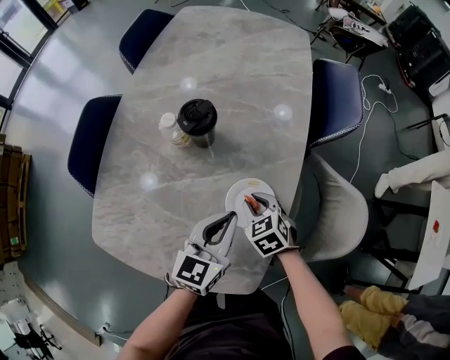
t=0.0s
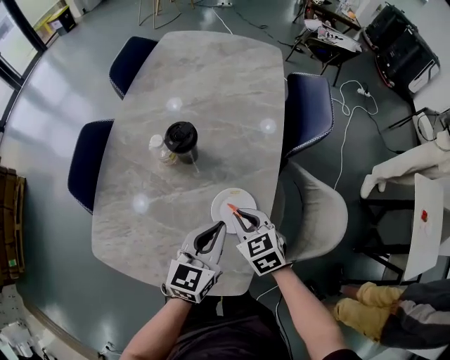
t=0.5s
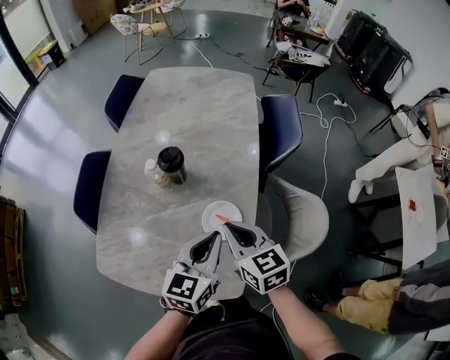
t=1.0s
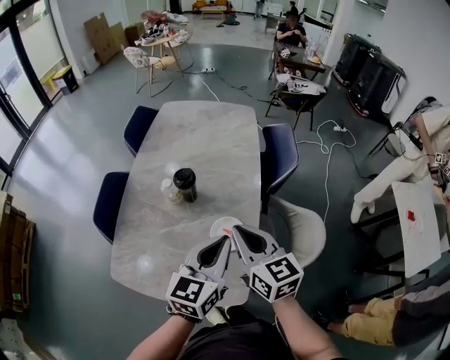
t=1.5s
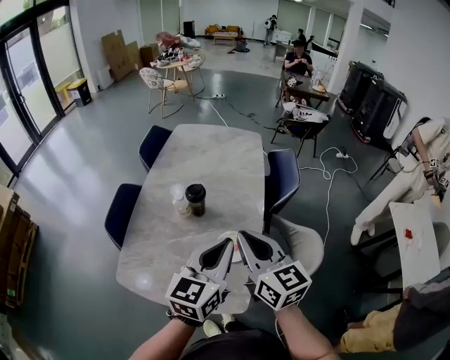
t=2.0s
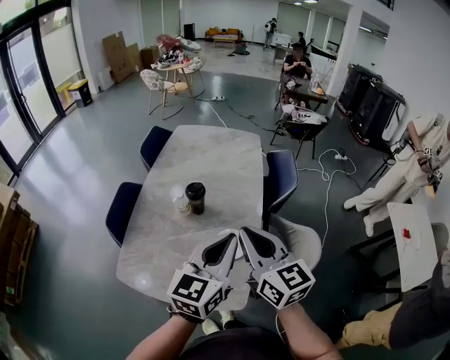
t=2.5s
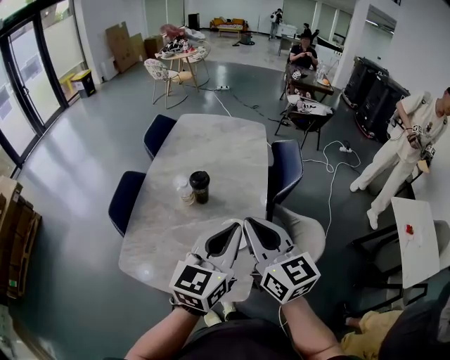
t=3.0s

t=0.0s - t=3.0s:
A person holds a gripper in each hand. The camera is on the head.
t=0.0s - t=1.5s: The right gripper moves upward, some 35 cm, and tilts its fingers roughly 40 degrees upward; the left gripper heads upward, covering roughly 25 cm.
t=1.5s - t=3.0s: The left gripper goes some 10 cm upward, while the right gripper travels upward and backward by about 10 cm.

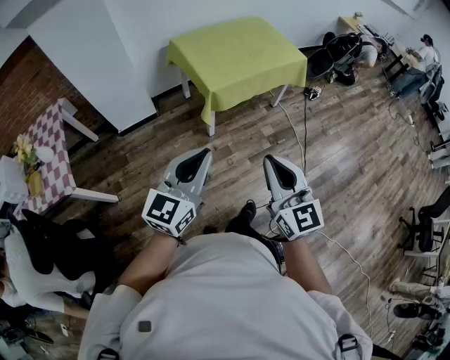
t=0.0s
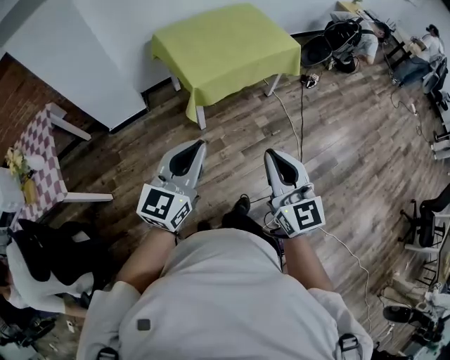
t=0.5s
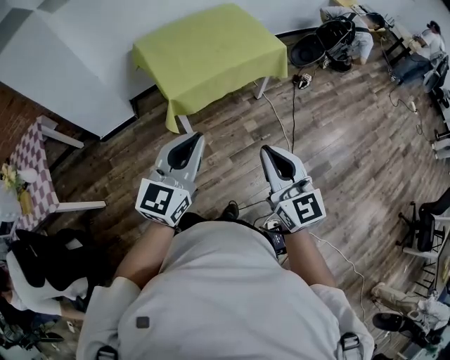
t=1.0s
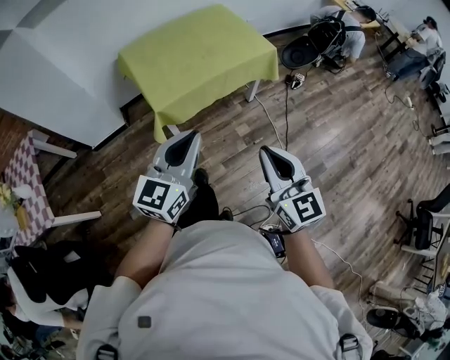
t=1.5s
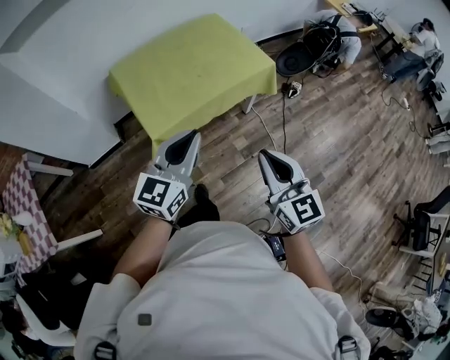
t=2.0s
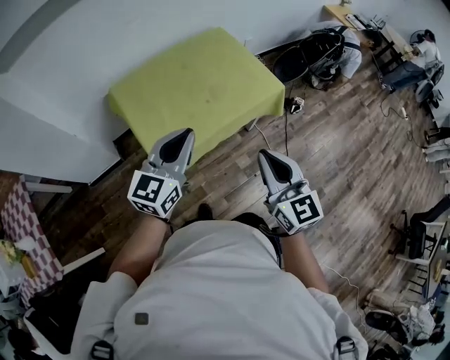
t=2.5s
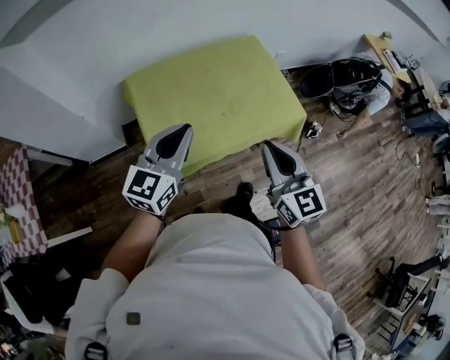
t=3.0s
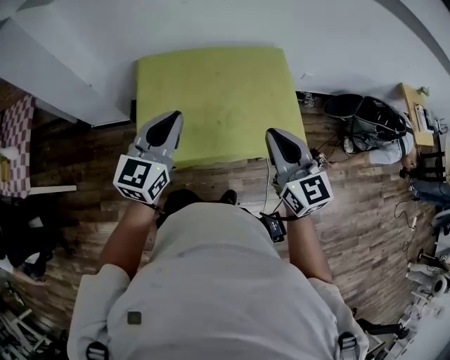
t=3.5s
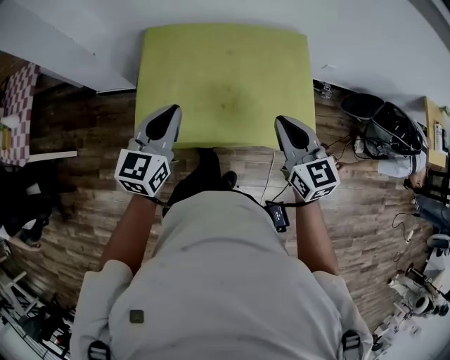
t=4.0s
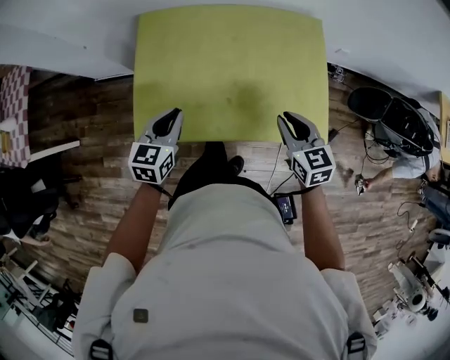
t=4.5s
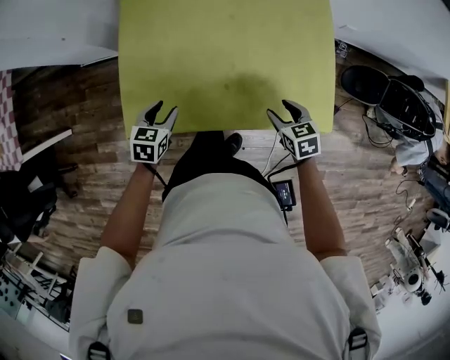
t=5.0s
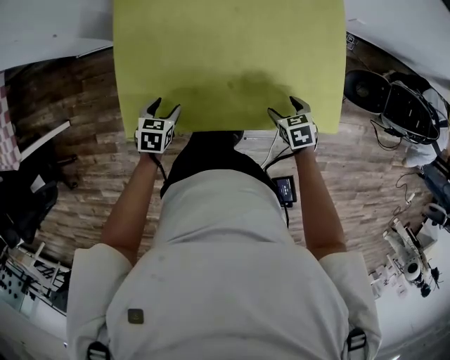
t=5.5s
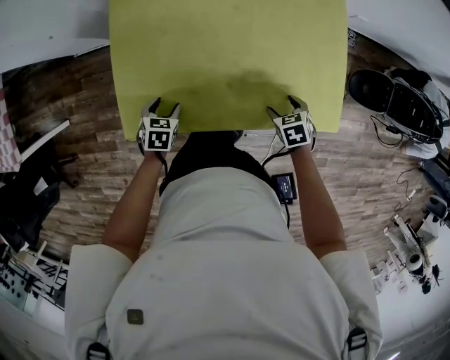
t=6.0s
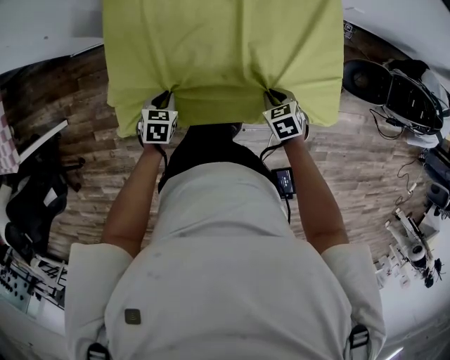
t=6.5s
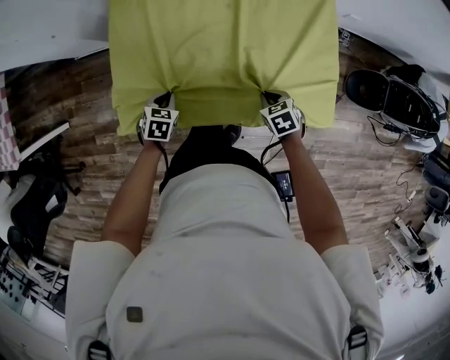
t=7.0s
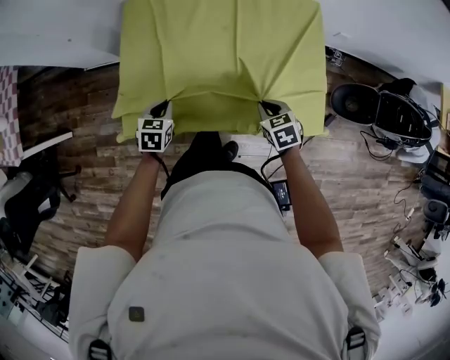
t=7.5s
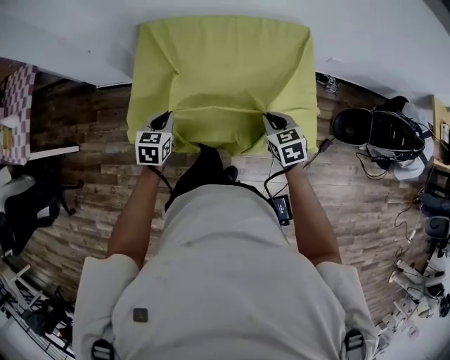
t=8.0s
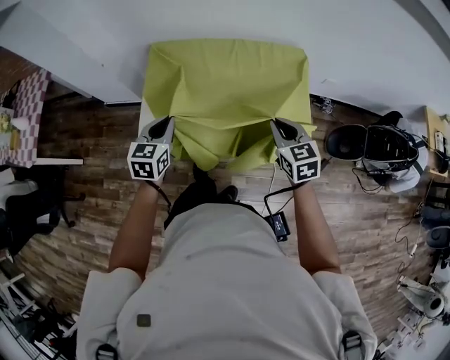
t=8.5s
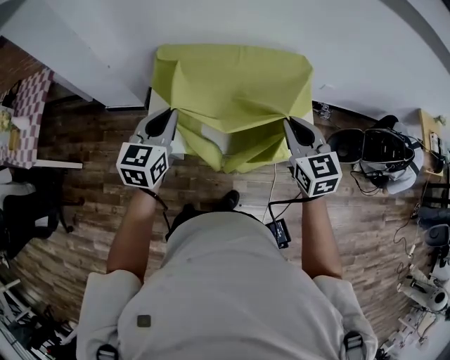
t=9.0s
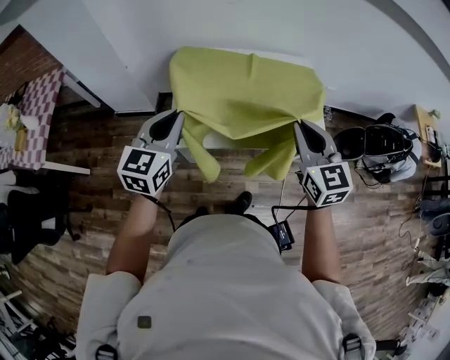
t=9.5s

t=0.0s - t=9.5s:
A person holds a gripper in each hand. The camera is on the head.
t=0.0s - t=2.0s: The grippers both shift forward and to the right by about 40 cm.
t=2.0s - t=4.0s: The left gripper changes place by approximately 30 cm, and swivels some 40 degrees. Meanwhile the right gripper shifts by roughly 50 cm, and swivels some 40 degrees.
t=4.0s - t=5.5s: The two grippers go roughly 35 cm downward. The right gripper angles its fingers downward, by about 50 degrees, and opens, while the left gripper angles its fingers downward, by approximately 50 degrees, and opens its fingers.
t=5.5s - t=7.5s: The two grippers go approximately 5 cm upward. The right gripper closes up. Meanwhile the left gripper closes its fingers.
t=7.5s - t=9.5s: Both grippers move upward, approximately 35 cm. The left gripper angles its fingers upward, by some 40 degrees; the right gripper tilts its fingers roughly 40 degrees upward.

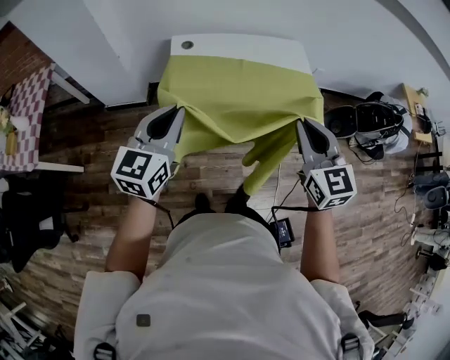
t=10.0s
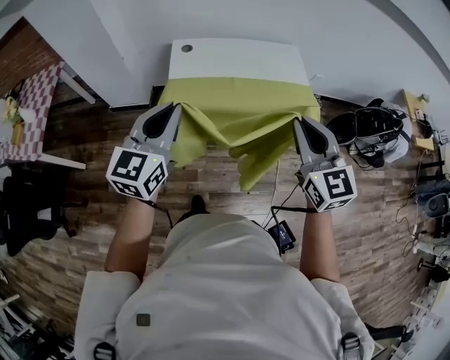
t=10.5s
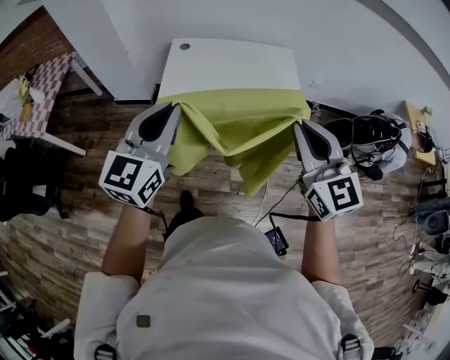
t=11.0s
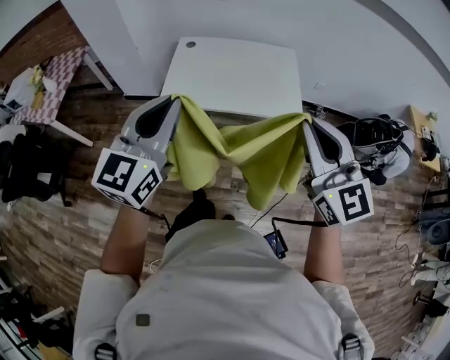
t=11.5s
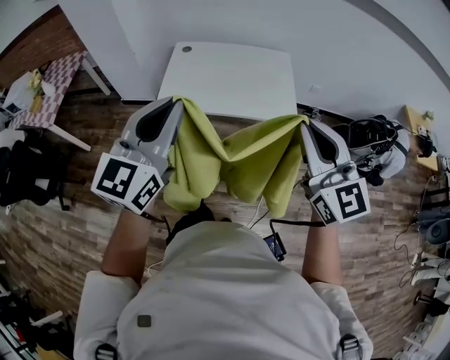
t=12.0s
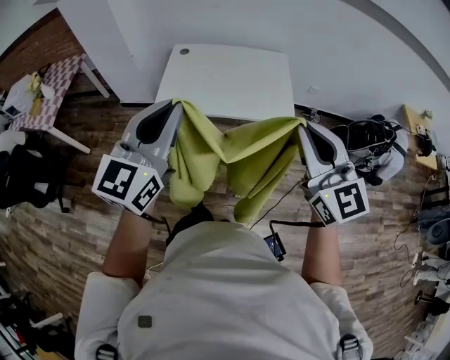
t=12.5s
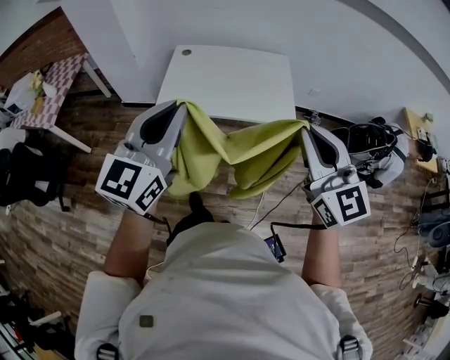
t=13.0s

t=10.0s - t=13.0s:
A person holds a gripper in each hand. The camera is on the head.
t=10.0s - t=11.5s: The grippers both shift backward, to the right and upward by about 30 cm. The right gripper rotates about 20 degrees.
t=11.5s - t=13.0s: The grippers make only small movements.

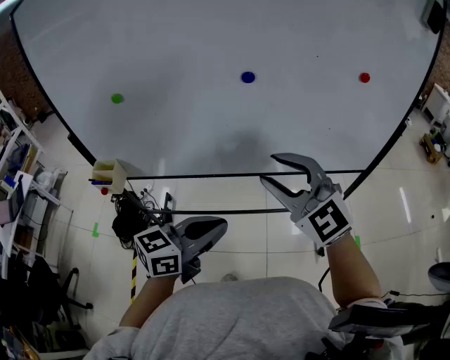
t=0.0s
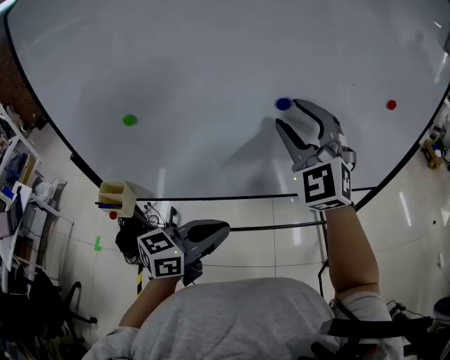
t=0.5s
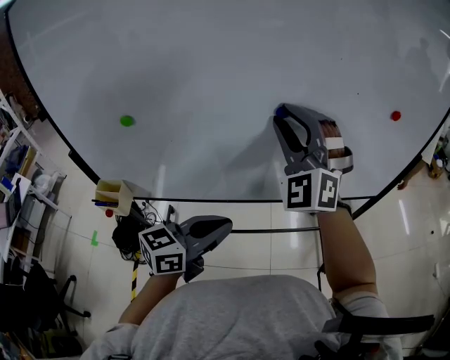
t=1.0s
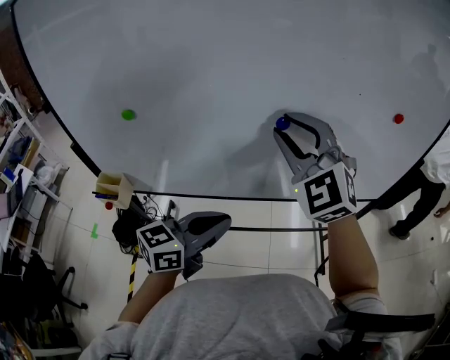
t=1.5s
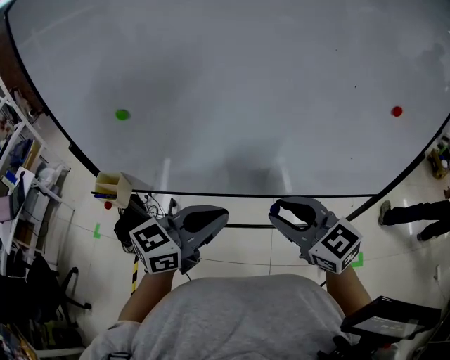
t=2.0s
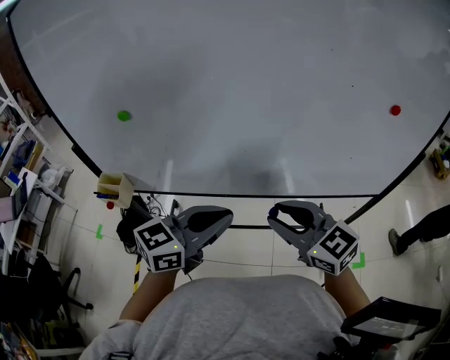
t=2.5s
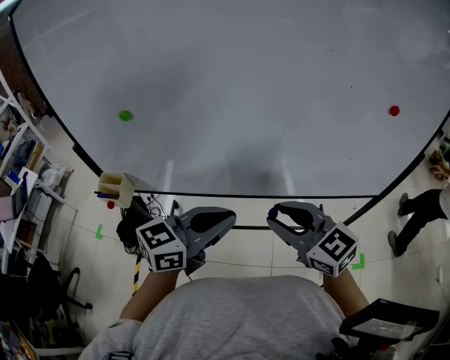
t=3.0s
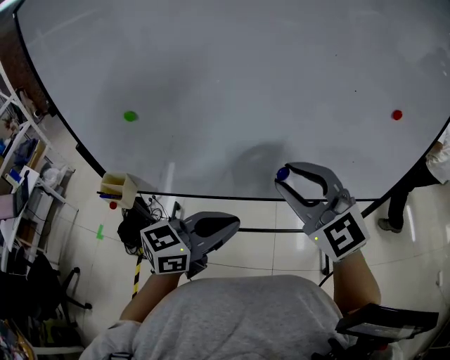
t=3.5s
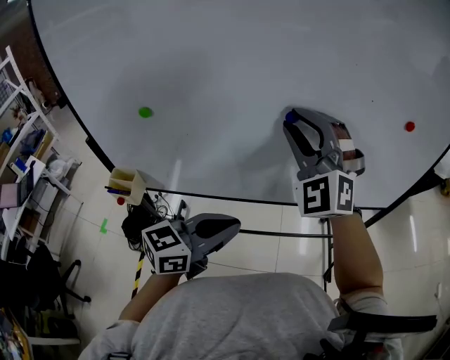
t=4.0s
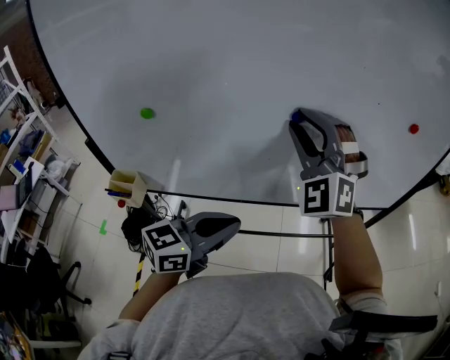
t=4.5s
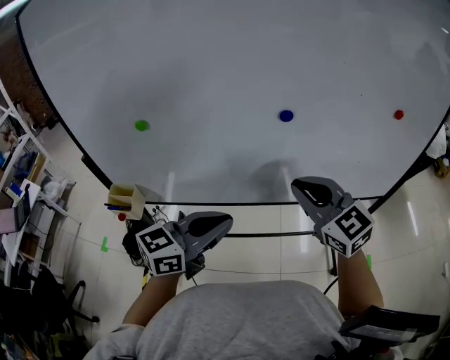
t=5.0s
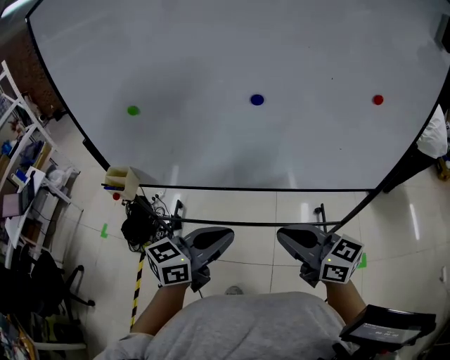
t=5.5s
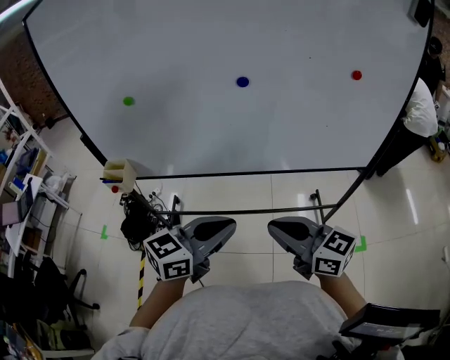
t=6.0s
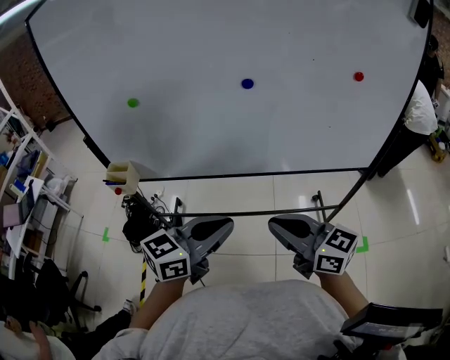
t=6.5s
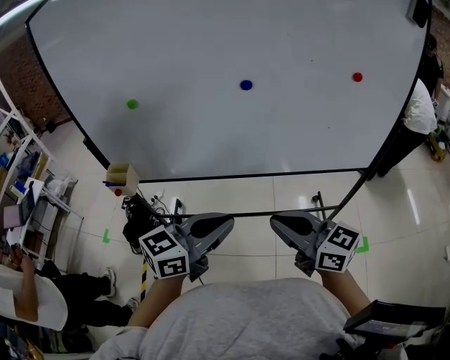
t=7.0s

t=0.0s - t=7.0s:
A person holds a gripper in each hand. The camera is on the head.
t=0.0s - t=2.0s: The left gripper is displaced forward by roughly 10 cm. Meanwhile the right gripper is displaced downward by some 5 cm, and rotates roughly 30 degrees.
t=2.0s - t=3.5s: The right gripper goes approximately 10 cm upward, and changes its angle by approximately 30 degrees.
t=3.5s - t=5.0s: The right gripper travels downward by roughly 5 cm, and closes, while the left gripper goes about 5 cm to the left.
t=5.0s - t=7.0s: The right gripper heads backward, covering some 20 cm, and rotates some 40 degrees; the left gripper shifts roughly 15 cm backward and to the right.

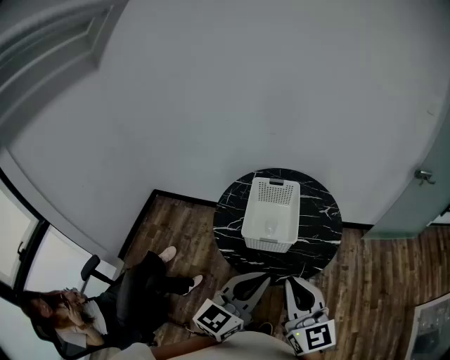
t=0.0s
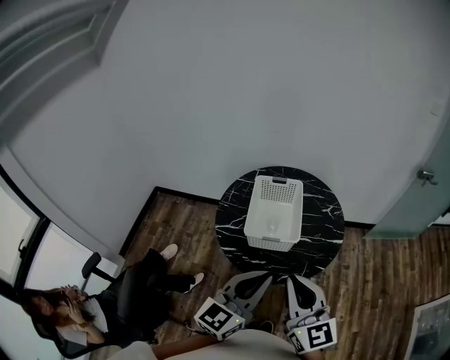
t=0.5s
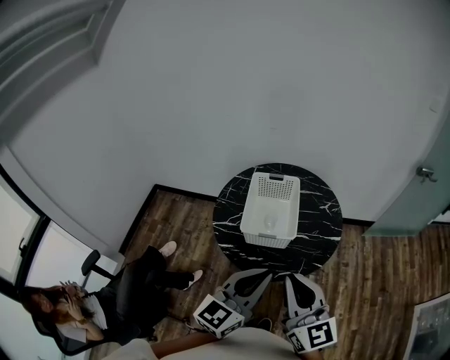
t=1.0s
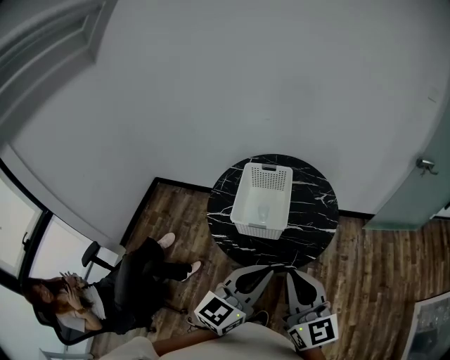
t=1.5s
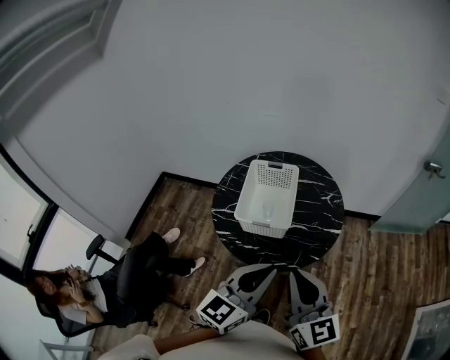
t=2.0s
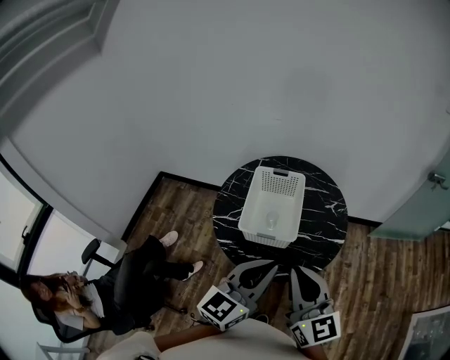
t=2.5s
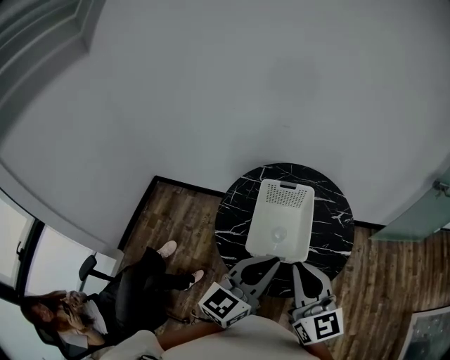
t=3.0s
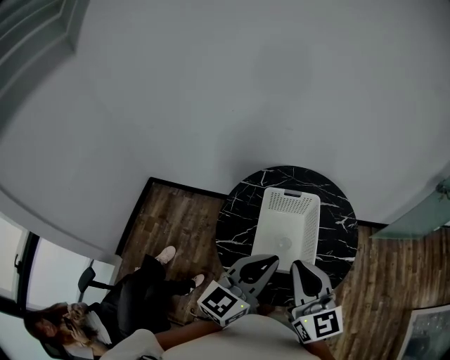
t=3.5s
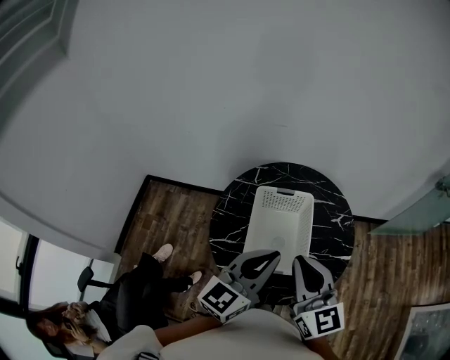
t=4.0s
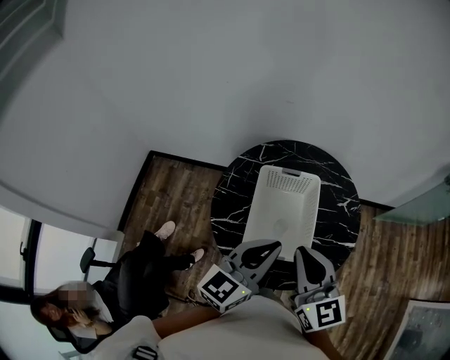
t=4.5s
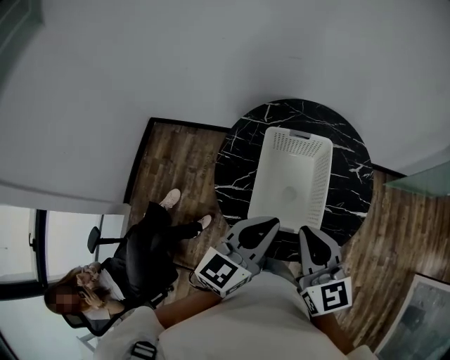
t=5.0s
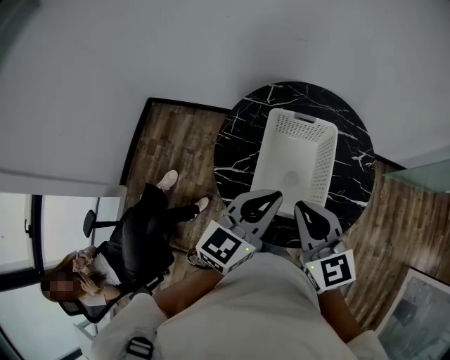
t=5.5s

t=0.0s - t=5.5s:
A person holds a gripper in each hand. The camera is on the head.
t=0.0s - t=2.0s: The two grippers go roughly 10 cm to the right.
t=2.0s - t=3.5s: Both grippers travel together forward and to the left, some 30 cm.
t=3.5s - t=5.5s: The two grippers go about 10 cm downward and forward. The right gripper changes its angle by roughly 20 degrees.
